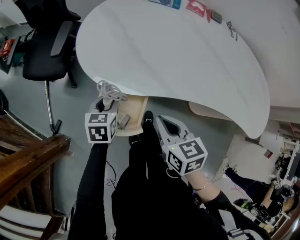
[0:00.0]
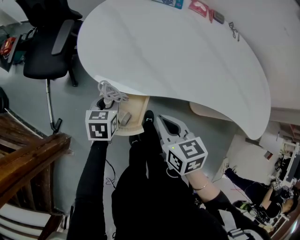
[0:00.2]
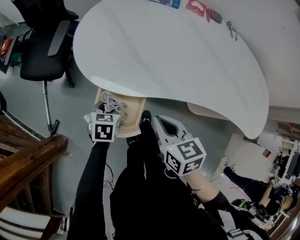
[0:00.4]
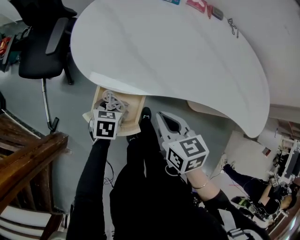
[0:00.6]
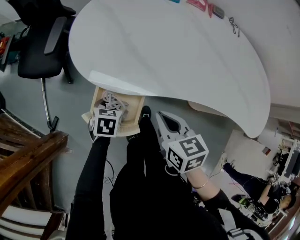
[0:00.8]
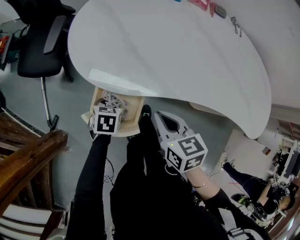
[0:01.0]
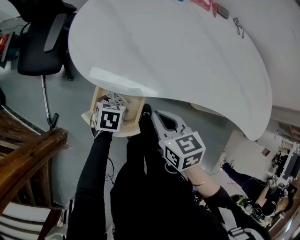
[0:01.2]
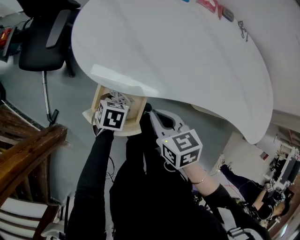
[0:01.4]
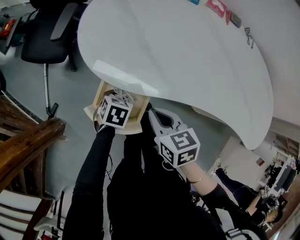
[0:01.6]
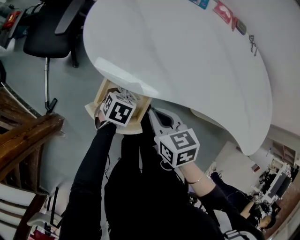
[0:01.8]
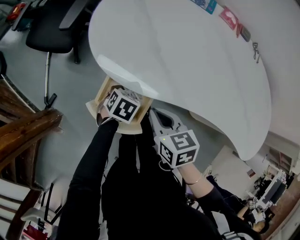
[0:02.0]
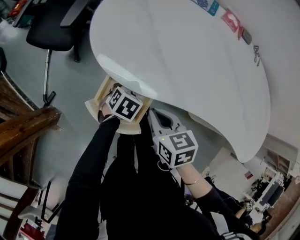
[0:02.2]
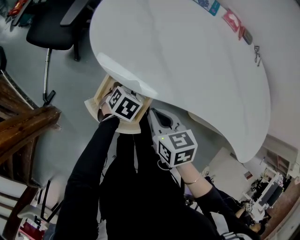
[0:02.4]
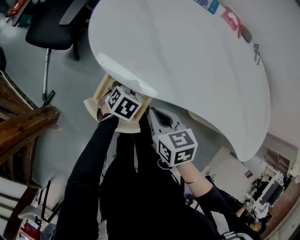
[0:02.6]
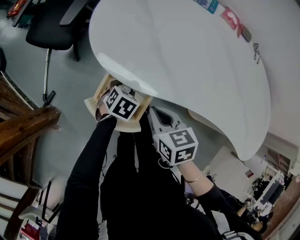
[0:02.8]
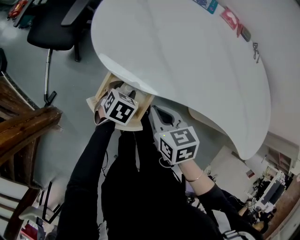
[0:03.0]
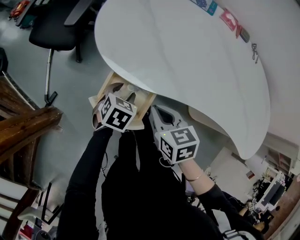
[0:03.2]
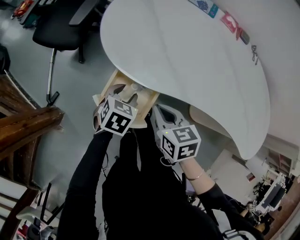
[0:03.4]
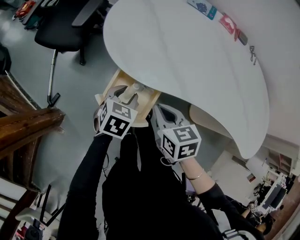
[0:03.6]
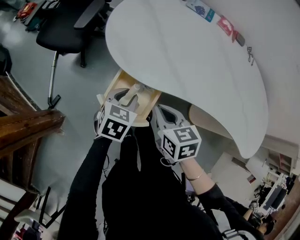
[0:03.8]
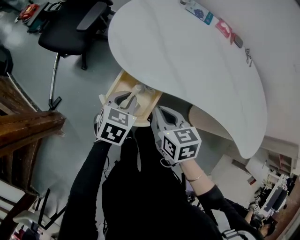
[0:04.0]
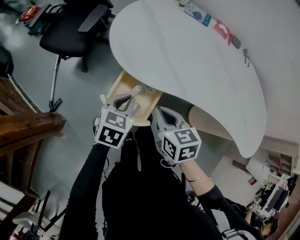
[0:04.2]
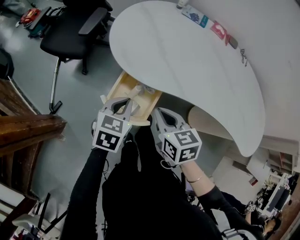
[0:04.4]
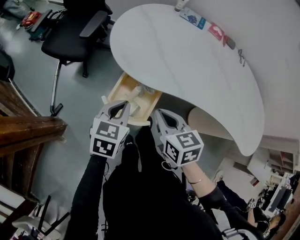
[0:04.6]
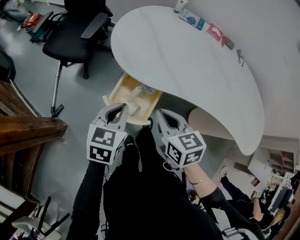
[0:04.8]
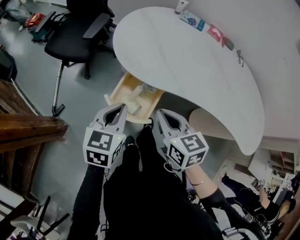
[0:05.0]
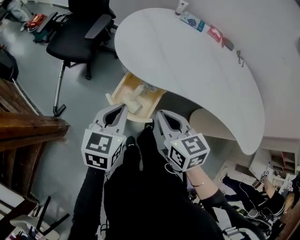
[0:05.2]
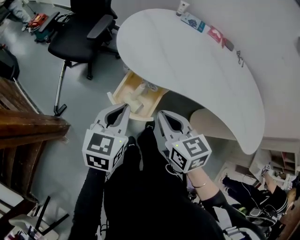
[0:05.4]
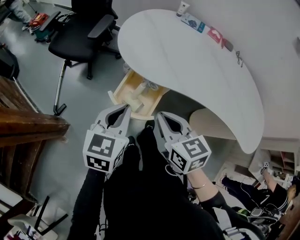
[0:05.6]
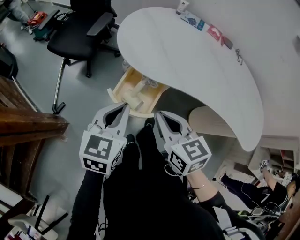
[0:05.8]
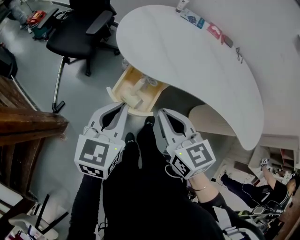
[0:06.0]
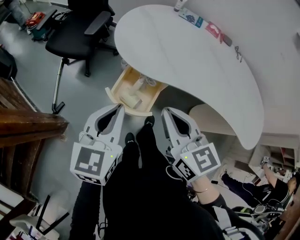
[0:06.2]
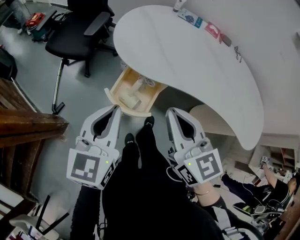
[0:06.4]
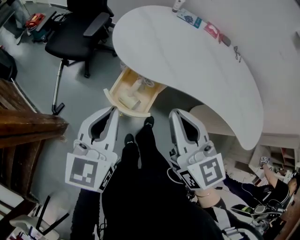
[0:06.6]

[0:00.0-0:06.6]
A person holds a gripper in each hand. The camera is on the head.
0:00.0 to 0:01.6: The right gripper moves approximately 5 cm; the left gripper goes about 10 cm downward, and rotates roughly 20 degrees.
0:01.6 to 0:03.2: The grippers stay close to where they were, moving slightly.
0:03.2 to 0:05.0: The right gripper heads upward and backward, covering about 10 cm; the left gripper goes about 20 cm upward and backward, changes its angle by roughly 30 degrees, and closes up.
0:05.0 to 0:06.6: The right gripper moves upward, some 15 cm, and changes its angle by roughly 20 degrees; the left gripper heads upward and backward, covering some 10 cm.

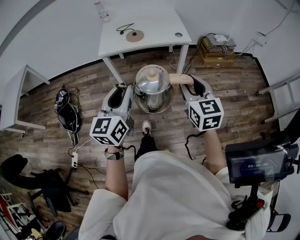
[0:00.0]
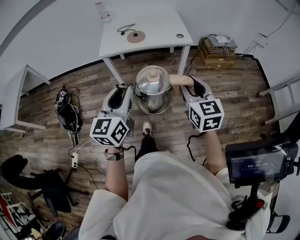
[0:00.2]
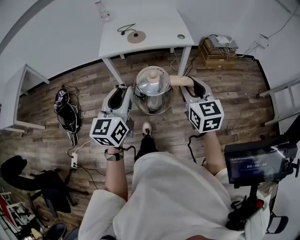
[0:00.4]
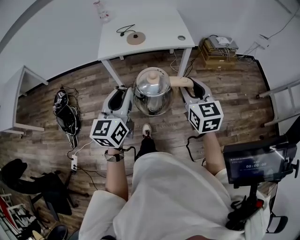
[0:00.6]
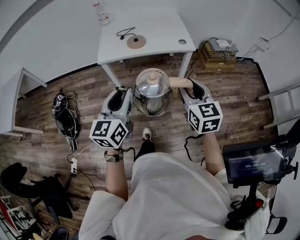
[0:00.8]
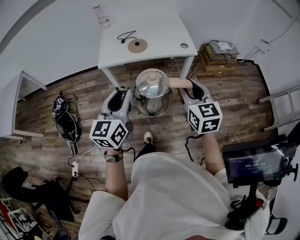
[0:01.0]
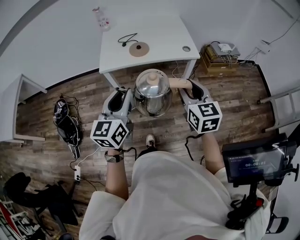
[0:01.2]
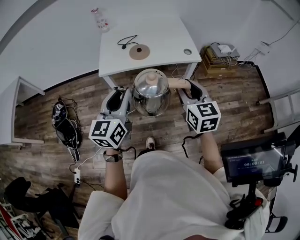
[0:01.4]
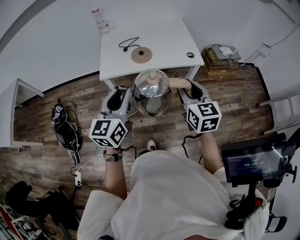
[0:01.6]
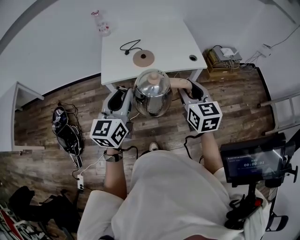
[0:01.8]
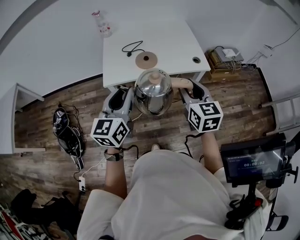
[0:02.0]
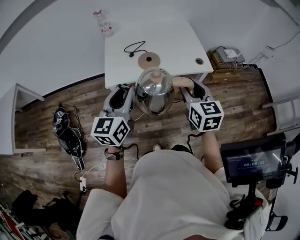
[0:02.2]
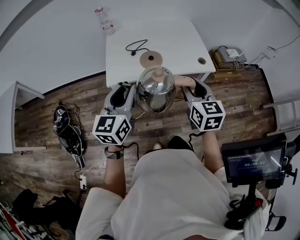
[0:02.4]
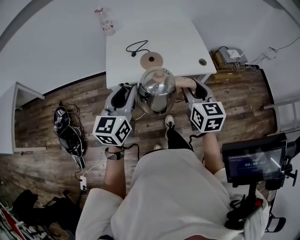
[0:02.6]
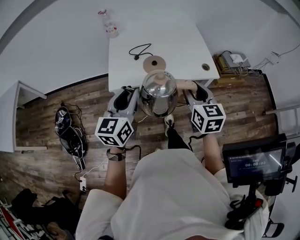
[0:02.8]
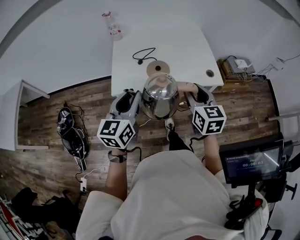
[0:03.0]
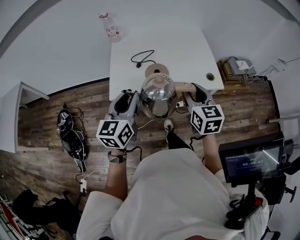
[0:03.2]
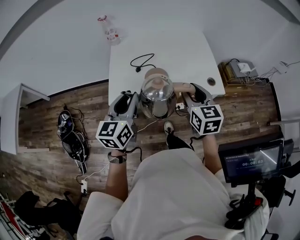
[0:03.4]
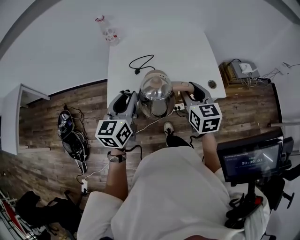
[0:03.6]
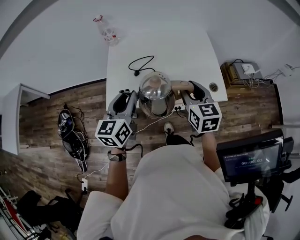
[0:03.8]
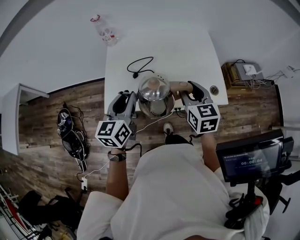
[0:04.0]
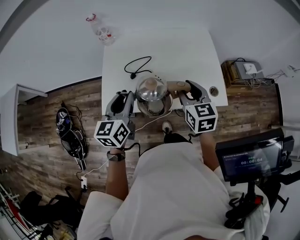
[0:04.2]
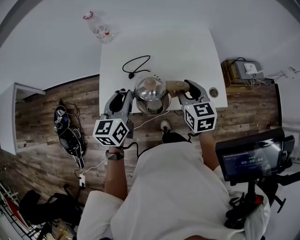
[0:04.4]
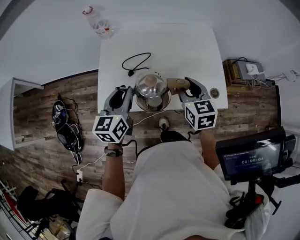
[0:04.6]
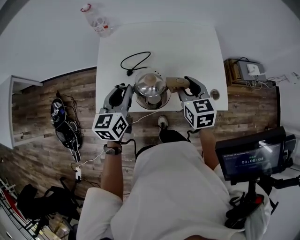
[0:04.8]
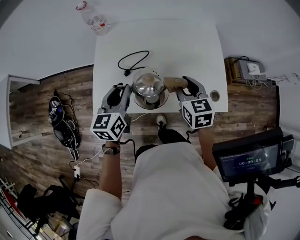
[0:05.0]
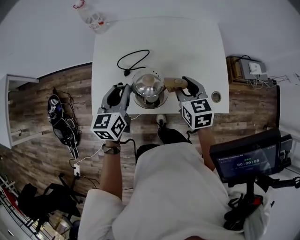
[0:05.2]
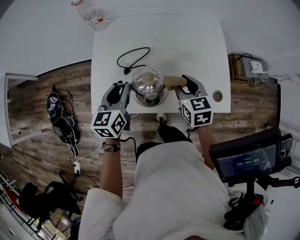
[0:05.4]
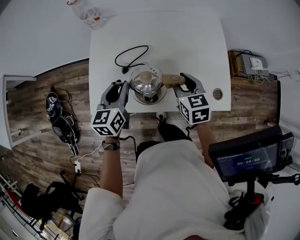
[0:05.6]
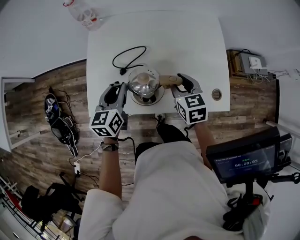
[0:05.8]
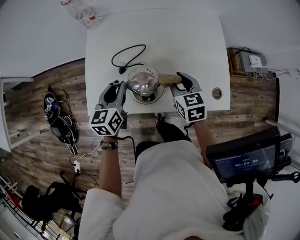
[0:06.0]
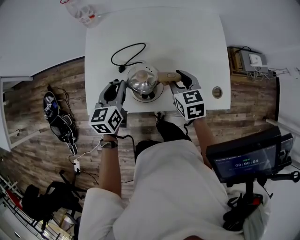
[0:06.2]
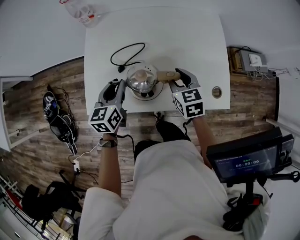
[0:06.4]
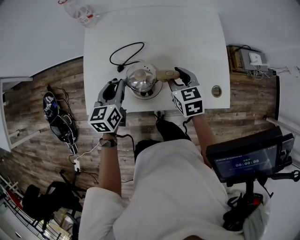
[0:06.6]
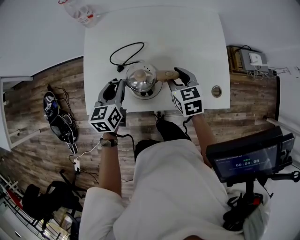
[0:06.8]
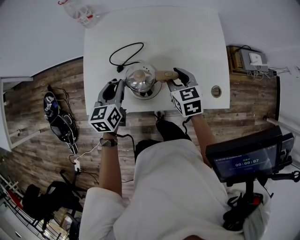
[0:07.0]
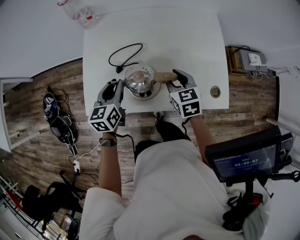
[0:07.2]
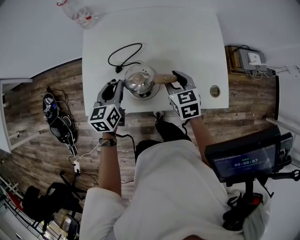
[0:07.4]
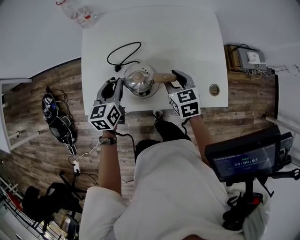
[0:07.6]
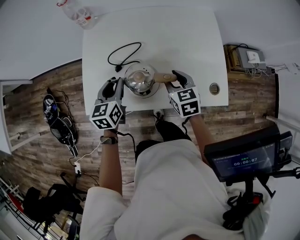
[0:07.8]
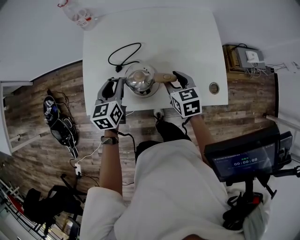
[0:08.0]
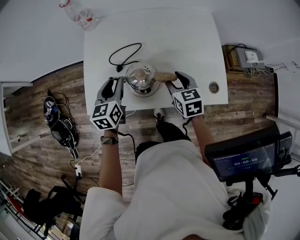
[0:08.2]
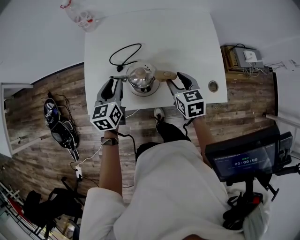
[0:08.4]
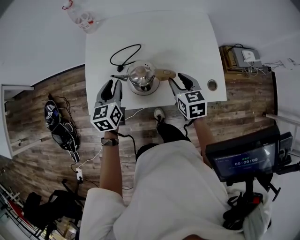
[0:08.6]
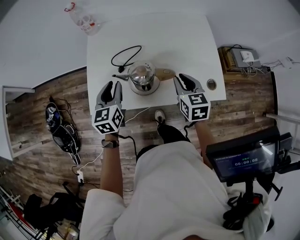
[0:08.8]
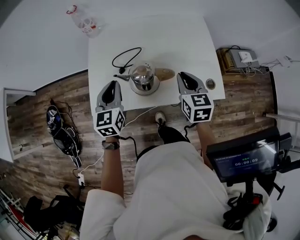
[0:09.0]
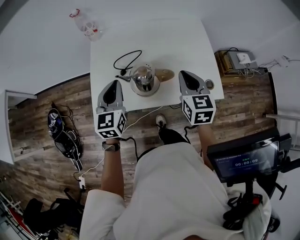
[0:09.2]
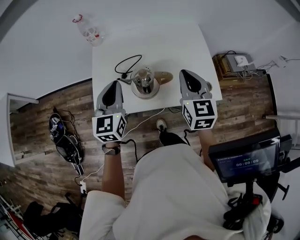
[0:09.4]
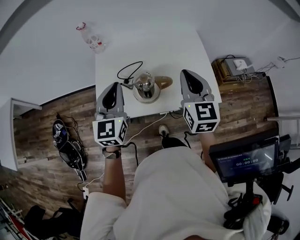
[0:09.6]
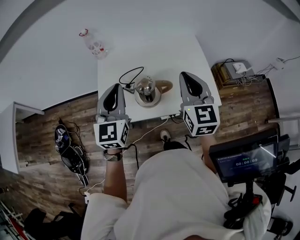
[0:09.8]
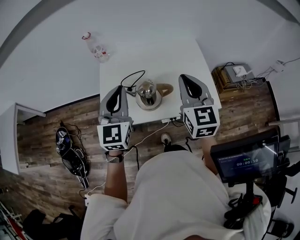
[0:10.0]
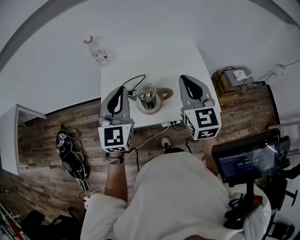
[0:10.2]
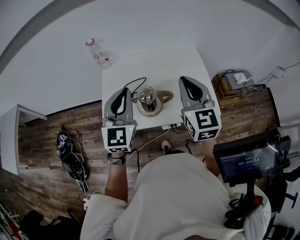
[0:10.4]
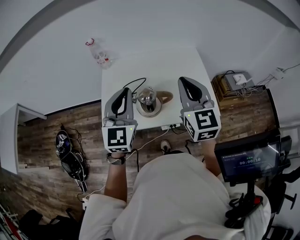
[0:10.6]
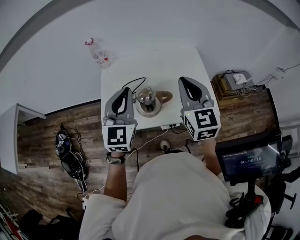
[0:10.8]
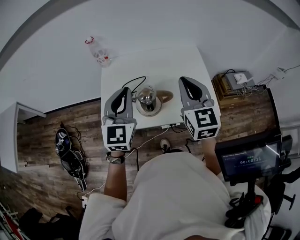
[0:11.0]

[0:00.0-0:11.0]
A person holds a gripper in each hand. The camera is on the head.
0:00.0 to 0:01.6: Both grippers travel together forward, approximately 25 cm.
0:01.6 to 0:03.2: The grippers both shift forward by roughly 20 cm.
0:03.2 to 0:04.8: Both grippers travel together forward and downward, about 25 cm.
0:04.8 to 0:06.2: The right gripper moves downward, some 10 cm, while the left gripper heads downward and forward, covering about 10 cm.
0:06.2 to 0:07.8: There are only small adjustments of the grippers.
0:07.8 to 0:09.4: The two grippers go approximately 20 cm upward. The left gripper turns by approximately 20 degrees, and closes up. Meanwhile the right gripper swivels approximately 30 degrees, and closes up.
0:09.4 to 0:11.0: Both grippers move upward, about 10 cm.

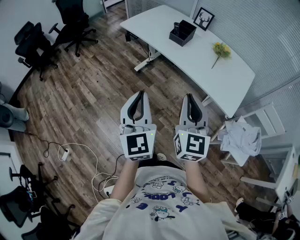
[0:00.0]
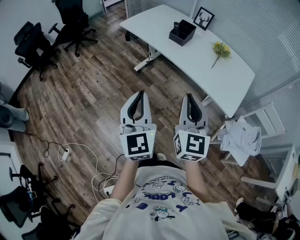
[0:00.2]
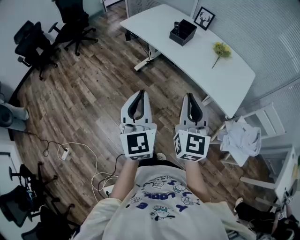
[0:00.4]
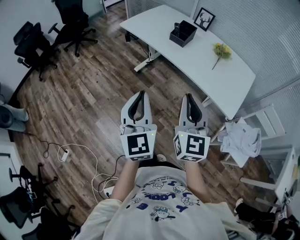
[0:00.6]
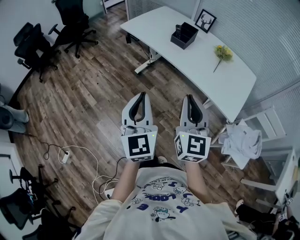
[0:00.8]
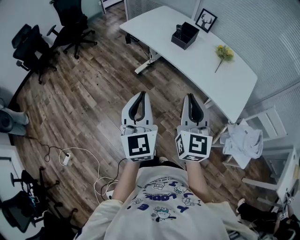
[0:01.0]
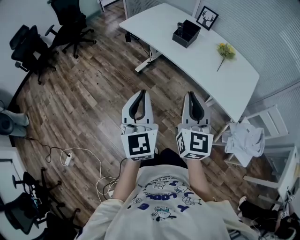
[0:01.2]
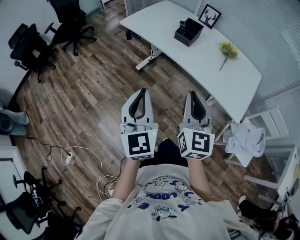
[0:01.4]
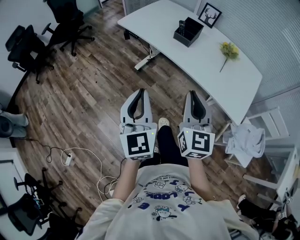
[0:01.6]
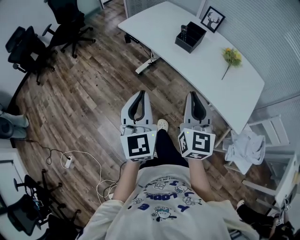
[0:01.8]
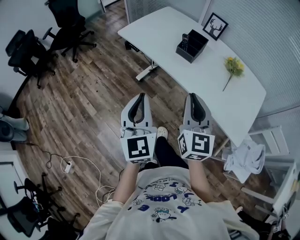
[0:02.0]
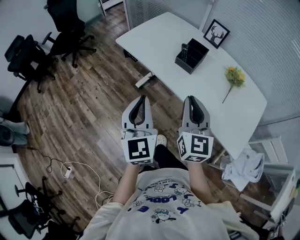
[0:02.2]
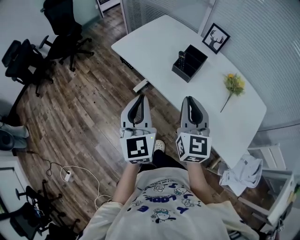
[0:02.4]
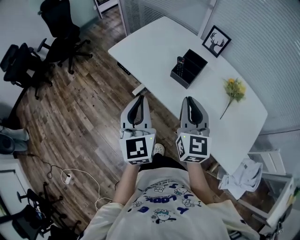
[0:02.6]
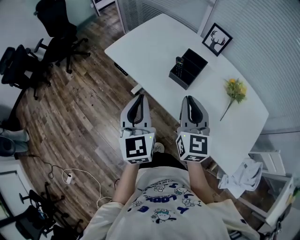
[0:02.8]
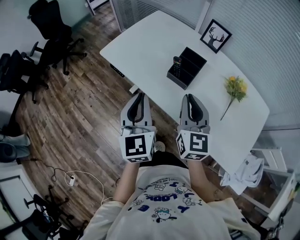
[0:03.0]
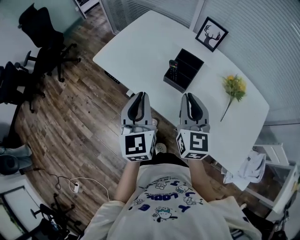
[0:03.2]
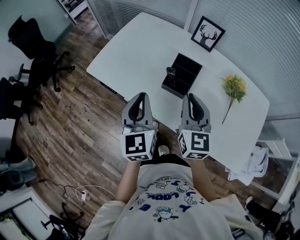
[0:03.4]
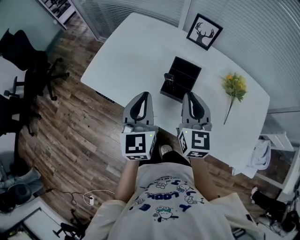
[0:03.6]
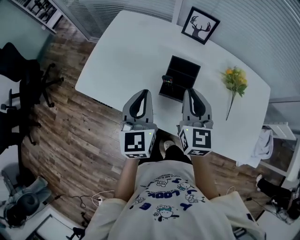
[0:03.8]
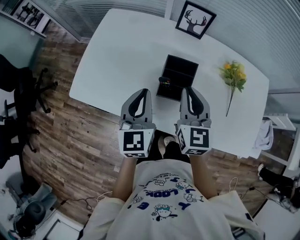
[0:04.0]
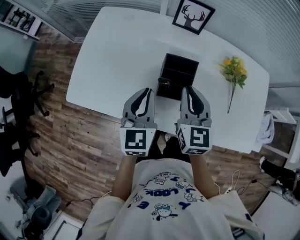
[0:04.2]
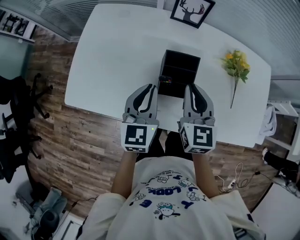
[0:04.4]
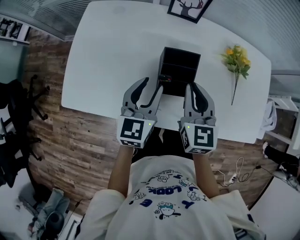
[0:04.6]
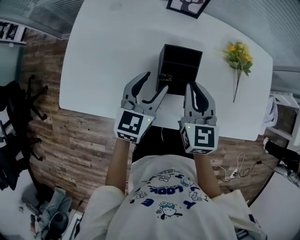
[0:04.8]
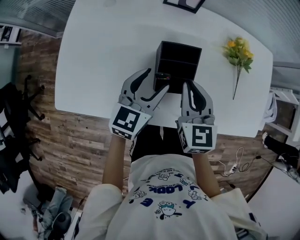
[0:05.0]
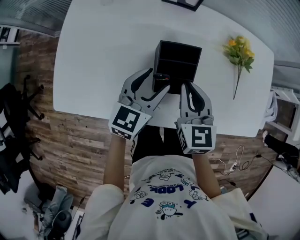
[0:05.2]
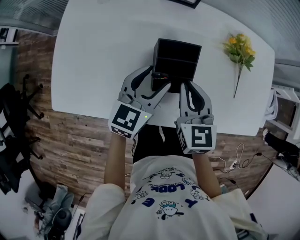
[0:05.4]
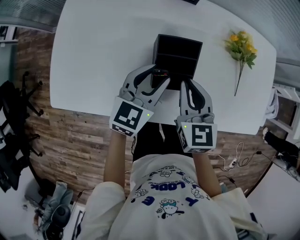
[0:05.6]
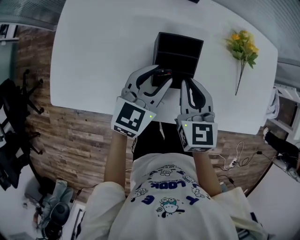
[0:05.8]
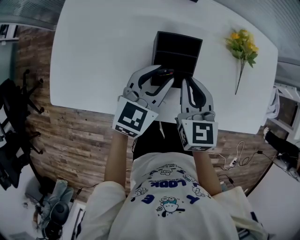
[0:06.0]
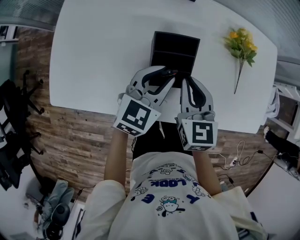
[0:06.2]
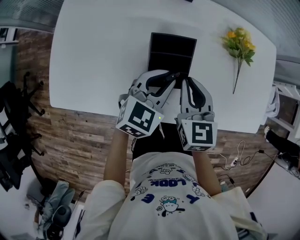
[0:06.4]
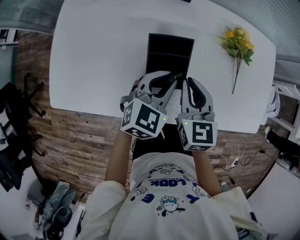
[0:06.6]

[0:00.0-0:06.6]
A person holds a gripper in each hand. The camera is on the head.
0:00.0 to 0:01.6: The grippers both shift forward by about 10 cm.
0:01.6 to 0:03.2: The pair of grippers is taken forward, about 40 cm.
0:03.2 to 0:05.0: The left gripper shifts by approximately 30 cm, changes its angle by about 60 degrees, and opens its fingers. The right gripper ends up roughly 20 cm from where it was, and rotates some 30 degrees.
0:05.0 to 0:06.6: The right gripper shifts by about 5 cm, while the left gripper goes roughly 10 cm to the right, turns by roughly 20 degrees, and closes up.
